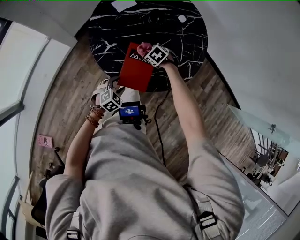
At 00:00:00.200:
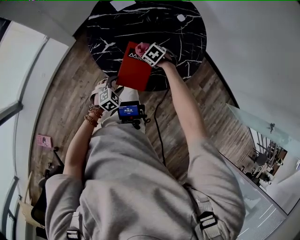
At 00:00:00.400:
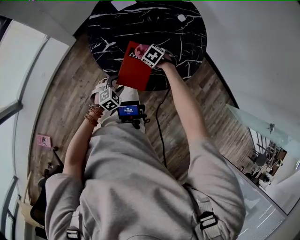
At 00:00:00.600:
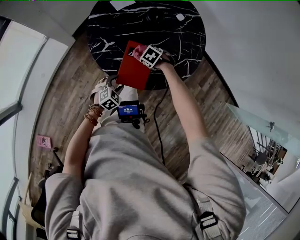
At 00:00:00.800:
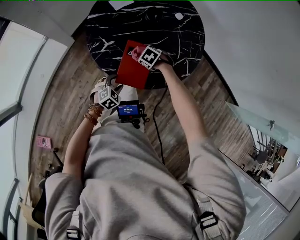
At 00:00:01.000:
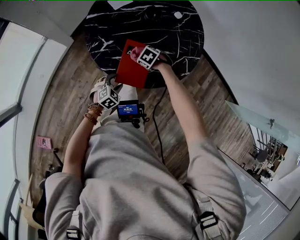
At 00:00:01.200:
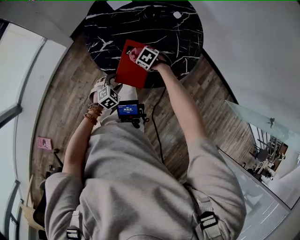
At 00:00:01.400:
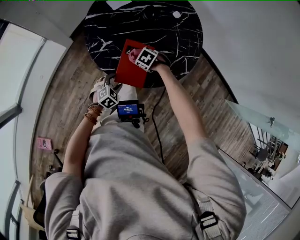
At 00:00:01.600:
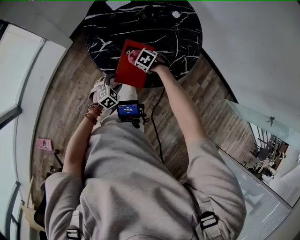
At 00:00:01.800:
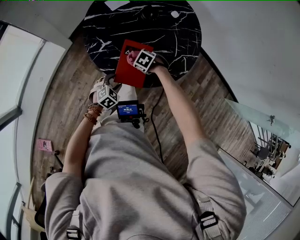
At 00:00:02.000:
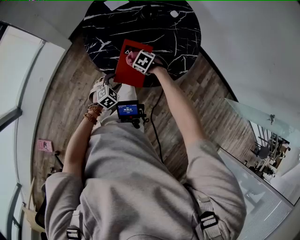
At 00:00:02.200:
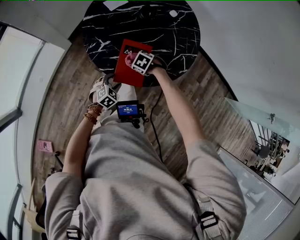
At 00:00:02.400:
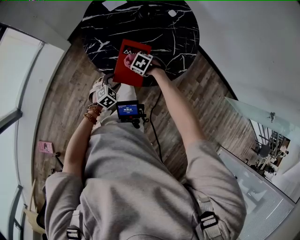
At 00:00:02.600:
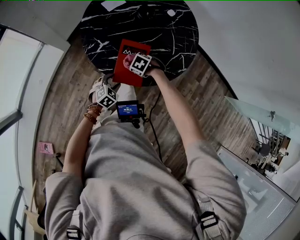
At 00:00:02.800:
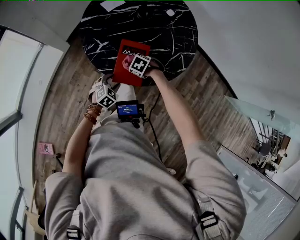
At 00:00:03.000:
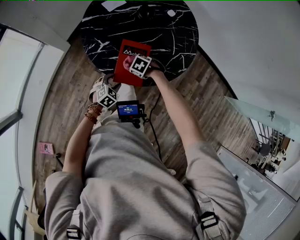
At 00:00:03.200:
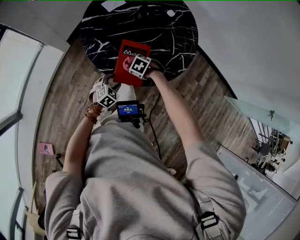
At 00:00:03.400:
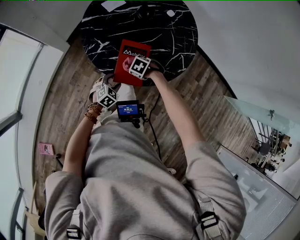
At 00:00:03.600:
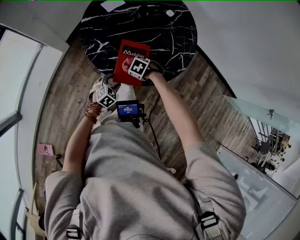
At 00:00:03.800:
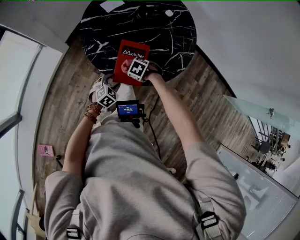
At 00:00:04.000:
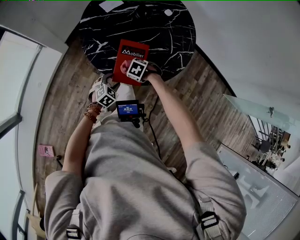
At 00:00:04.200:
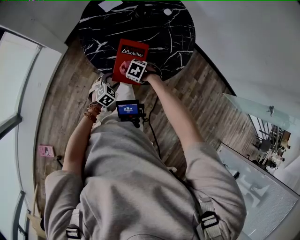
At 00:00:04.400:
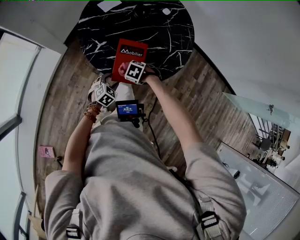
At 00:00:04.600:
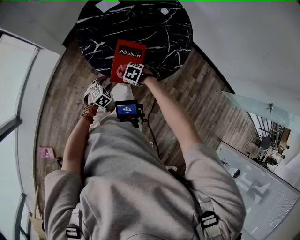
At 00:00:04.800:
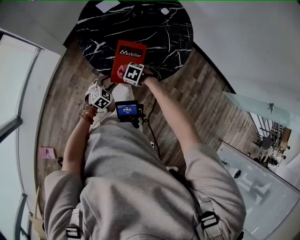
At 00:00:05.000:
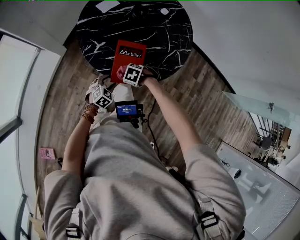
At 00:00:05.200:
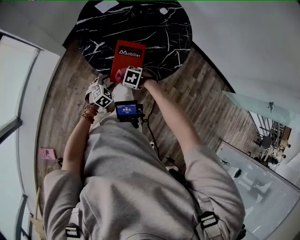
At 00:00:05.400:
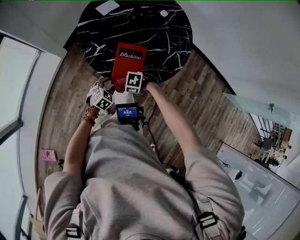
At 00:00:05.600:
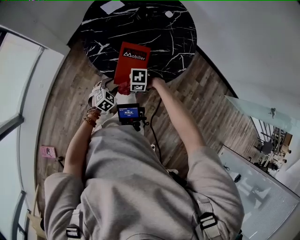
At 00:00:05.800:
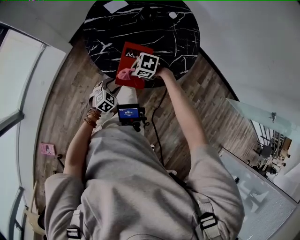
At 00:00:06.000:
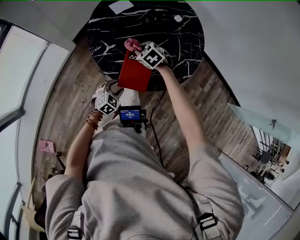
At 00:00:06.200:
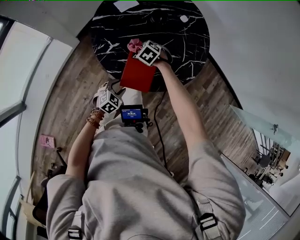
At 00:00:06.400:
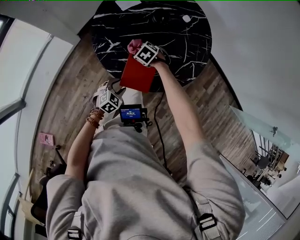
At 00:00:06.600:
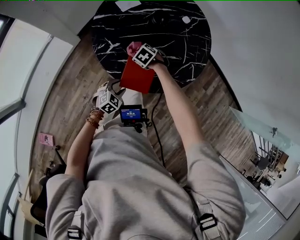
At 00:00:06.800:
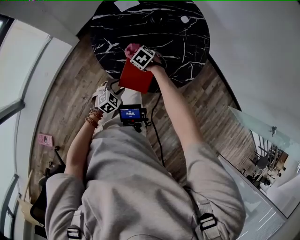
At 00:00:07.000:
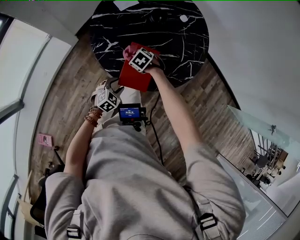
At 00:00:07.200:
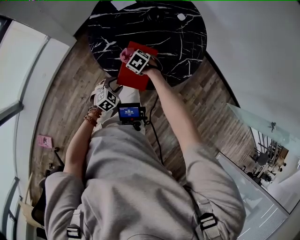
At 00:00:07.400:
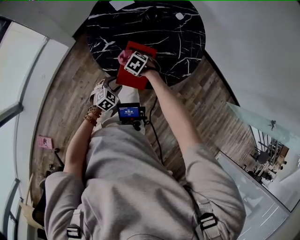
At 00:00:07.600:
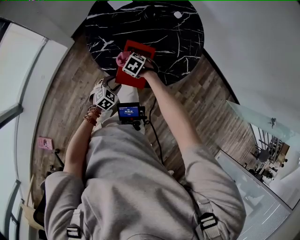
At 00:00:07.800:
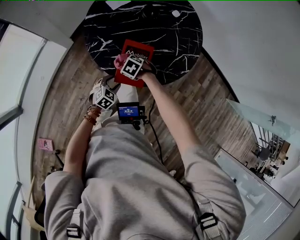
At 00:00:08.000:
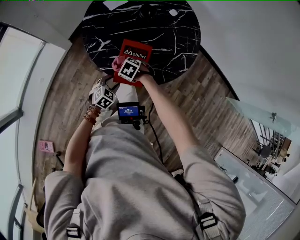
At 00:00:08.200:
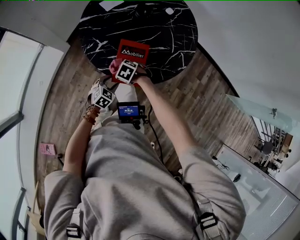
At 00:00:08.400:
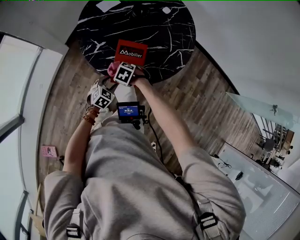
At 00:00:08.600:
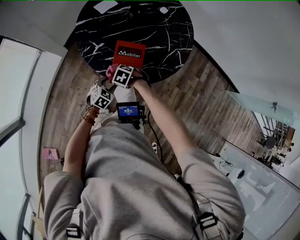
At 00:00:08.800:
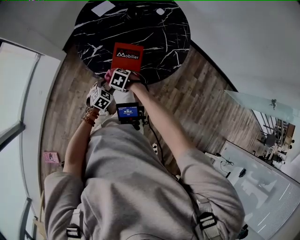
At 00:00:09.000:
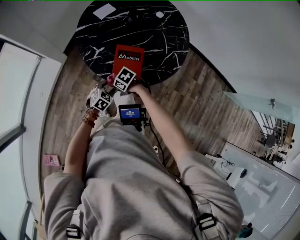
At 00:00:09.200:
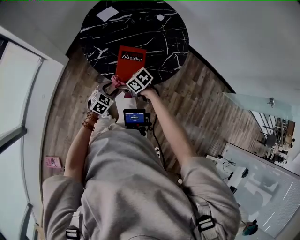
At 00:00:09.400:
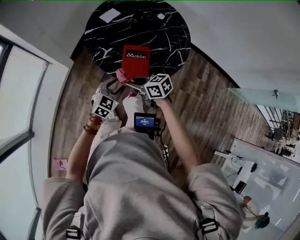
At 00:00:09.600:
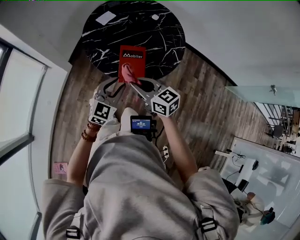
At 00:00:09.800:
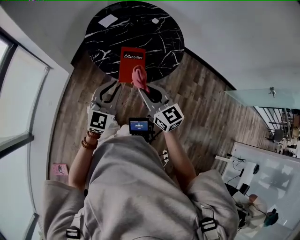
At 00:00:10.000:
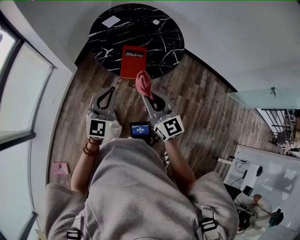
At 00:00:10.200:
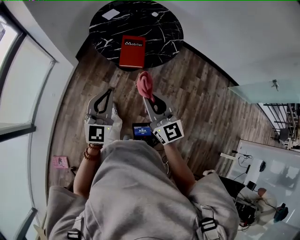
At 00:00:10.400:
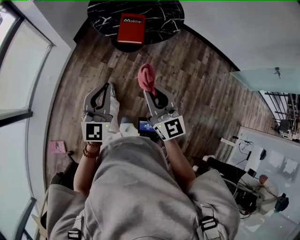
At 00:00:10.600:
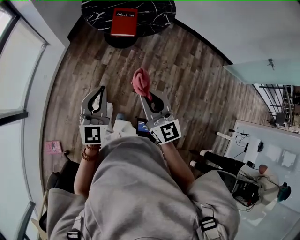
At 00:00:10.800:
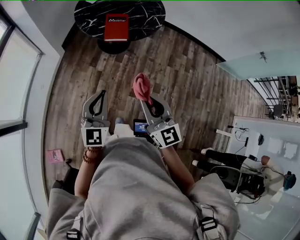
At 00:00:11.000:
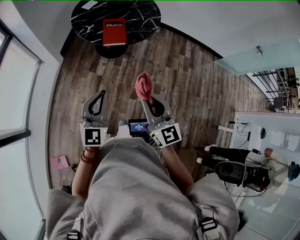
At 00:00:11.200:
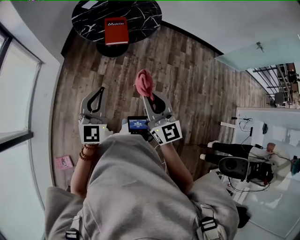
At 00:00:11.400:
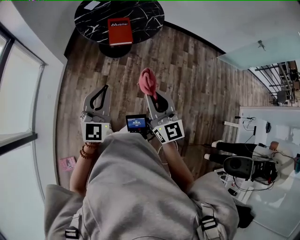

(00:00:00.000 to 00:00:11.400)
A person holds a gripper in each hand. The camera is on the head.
00:00:00.000 - 00:00:01.400: The right gripper moves roughly 10 cm.
00:00:01.400 - 00:00:02.800: The grippers move only a little.
00:00:02.800 - 00:00:04.200: There are only small adjustments of the grippers.
00:00:04.200 - 00:00:05.600: The right gripper changes place by approximately 10 cm, and changes its angle by some 30 degrees.
00:00:05.600 - 00:00:07.200: The right gripper ends up about 20 cm from where it was, and swivels approximately 40 degrees.
00:00:07.200 - 00:00:08.600: The right gripper ends up some 10 cm from where it was.
00:00:08.600 - 00:00:10.000: The grippers both shift upward by approximately 35 cm. The right gripper angles its fingers upward, by about 70 degrees. Meanwhile the left gripper tips its fingers upward by about 50 degrees, and closes its fingers.
00:00:10.000 - 00:00:11.400: The grippers both shift backward by roughly 25 cm.

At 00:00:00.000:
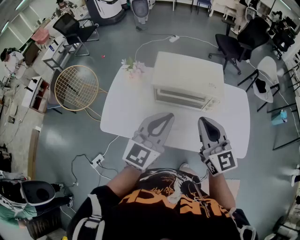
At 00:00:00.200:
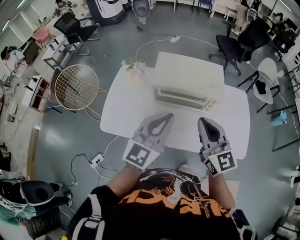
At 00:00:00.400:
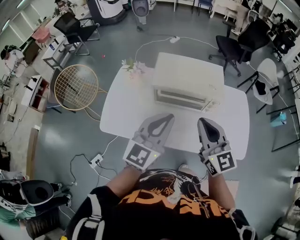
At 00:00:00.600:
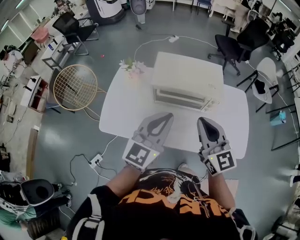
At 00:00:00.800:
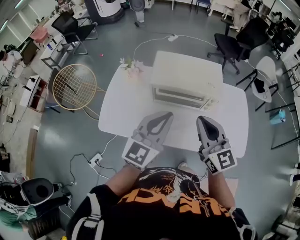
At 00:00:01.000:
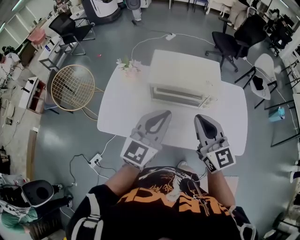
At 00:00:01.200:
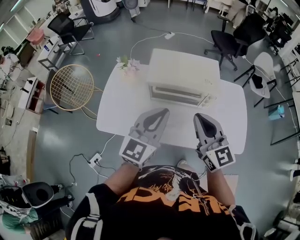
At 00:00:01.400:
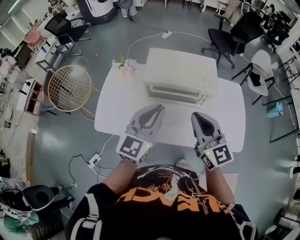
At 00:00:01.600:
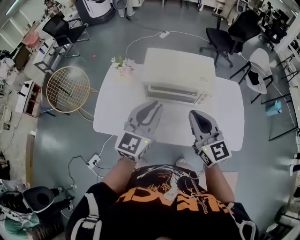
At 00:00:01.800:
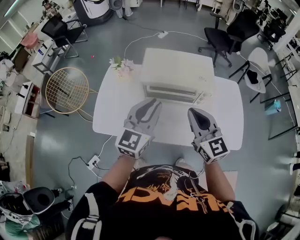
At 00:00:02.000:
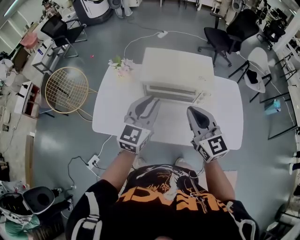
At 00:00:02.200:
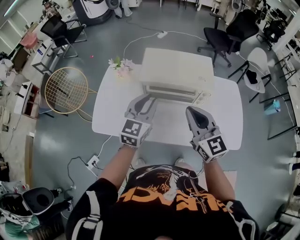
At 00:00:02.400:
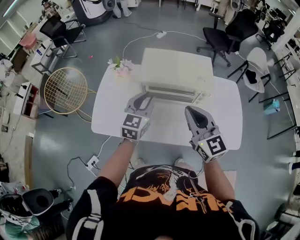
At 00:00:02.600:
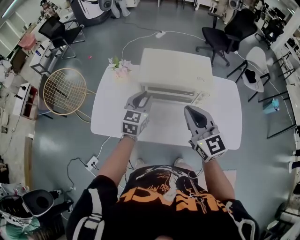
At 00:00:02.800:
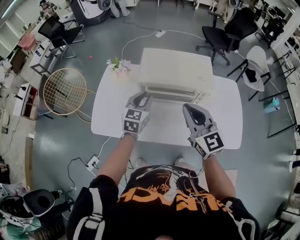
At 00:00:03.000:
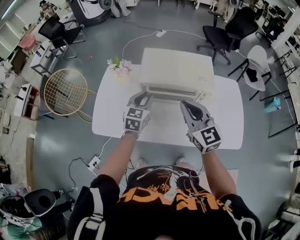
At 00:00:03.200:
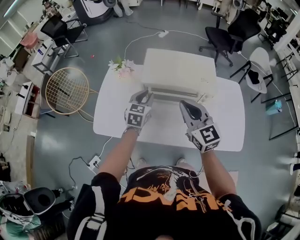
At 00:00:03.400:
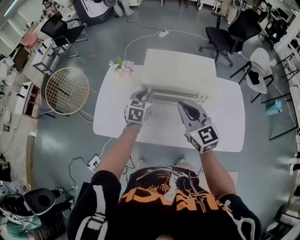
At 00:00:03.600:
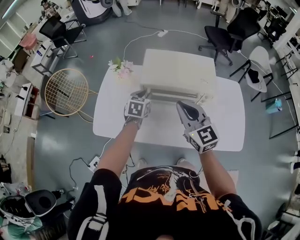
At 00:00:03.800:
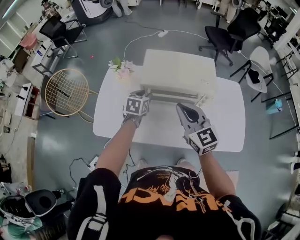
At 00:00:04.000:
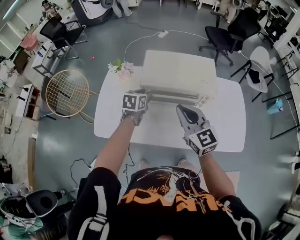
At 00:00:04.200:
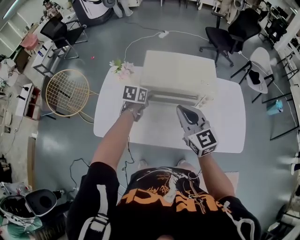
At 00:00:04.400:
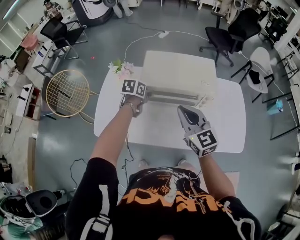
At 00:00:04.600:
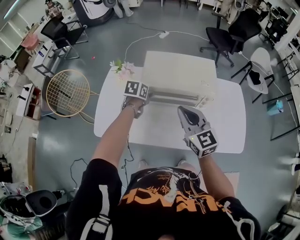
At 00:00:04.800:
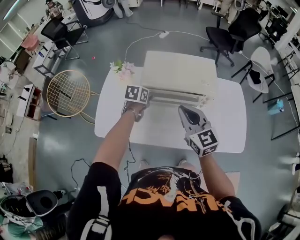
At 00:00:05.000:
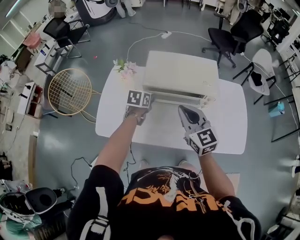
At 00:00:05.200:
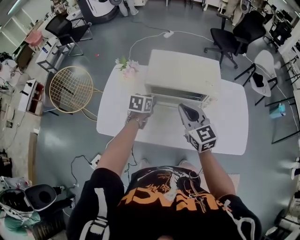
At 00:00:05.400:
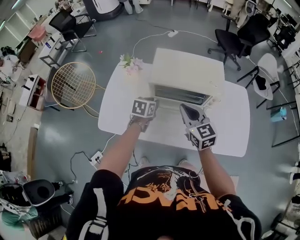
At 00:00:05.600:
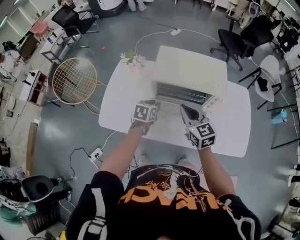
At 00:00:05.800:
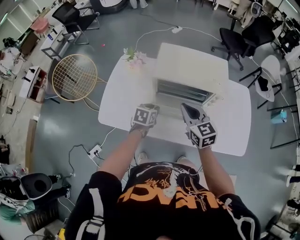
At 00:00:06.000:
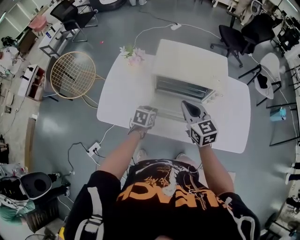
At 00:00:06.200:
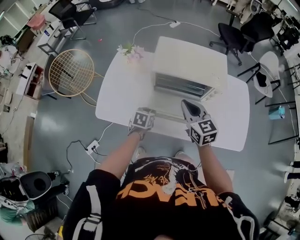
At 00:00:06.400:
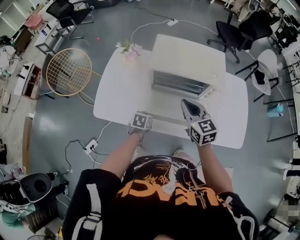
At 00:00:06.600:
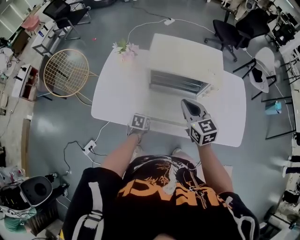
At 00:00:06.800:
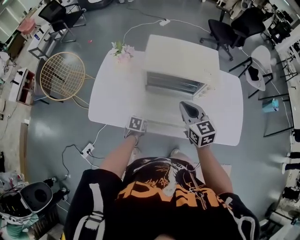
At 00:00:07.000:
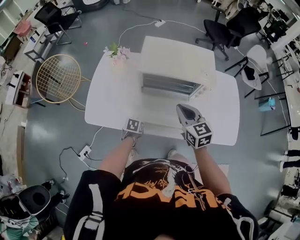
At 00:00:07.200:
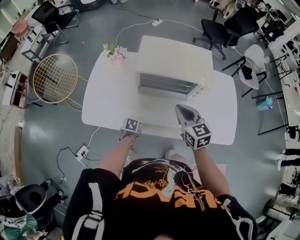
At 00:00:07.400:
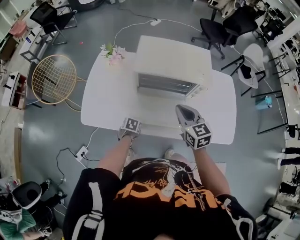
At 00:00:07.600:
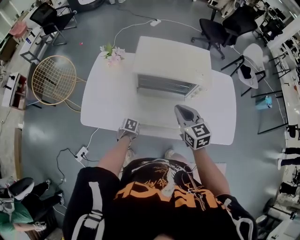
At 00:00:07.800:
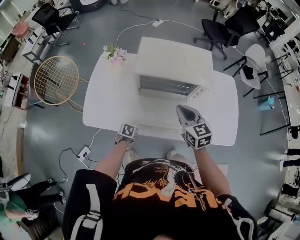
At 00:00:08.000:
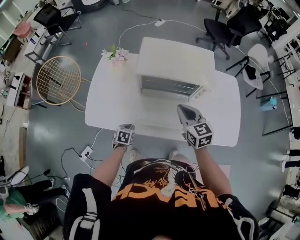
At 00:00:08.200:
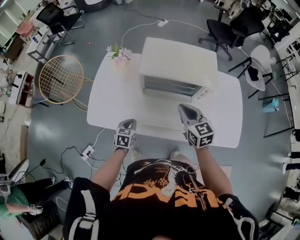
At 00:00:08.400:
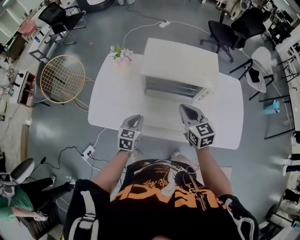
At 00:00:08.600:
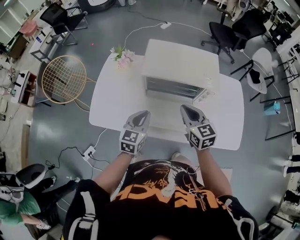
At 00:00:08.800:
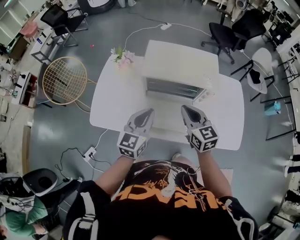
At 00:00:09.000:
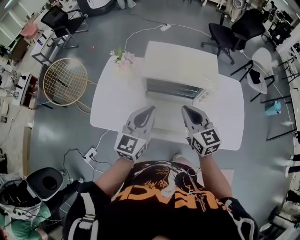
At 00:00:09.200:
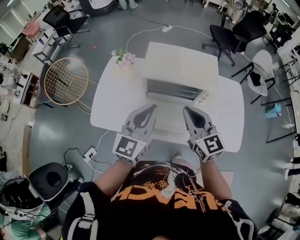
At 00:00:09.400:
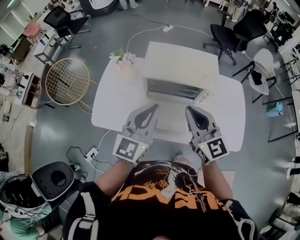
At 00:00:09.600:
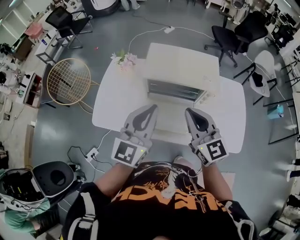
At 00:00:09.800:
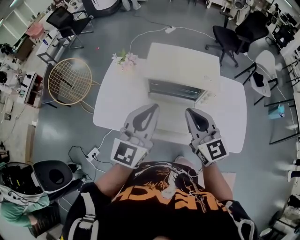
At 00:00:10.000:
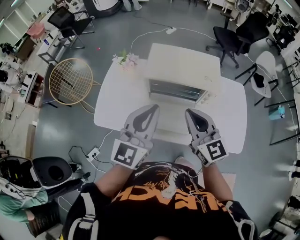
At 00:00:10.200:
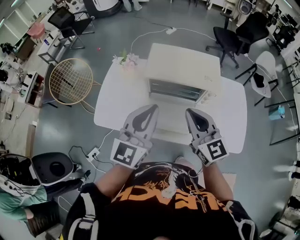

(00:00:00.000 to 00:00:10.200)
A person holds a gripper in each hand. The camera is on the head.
00:00:00.000 - 00:00:01.400: There are only small adjustments of the grippers.
00:00:01.400 - 00:00:03.000: The left gripper heads downward and forward, covering roughly 20 cm, and rotates some 20 degrees, while the right gripper is displaced forward by approximately 5 cm.
00:00:03.000 - 00:00:04.400: The left gripper travels downward and forward by approximately 10 cm, and rotates approximately 40 degrees.
00:00:04.400 - 00:00:05.800: The right gripper is displaced downward by roughly 5 cm, while the left gripper is displaced backward and downward by approximately 15 cm.
00:00:05.800 - 00:00:07.200: The left gripper is displaced downward and backward by approximately 20 cm, and rotates about 20 degrees.
00:00:07.200 - 00:00:08.800: The left gripper heads upward, covering approximately 35 cm, and angles its fingers upward, by about 50 degrees.
00:00:08.800 - 00:00:10.200: The right gripper heads upward and backward, covering approximately 10 cm, while the left gripper travels upward by about 15 cm.
